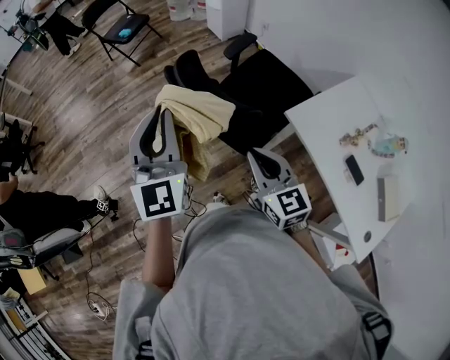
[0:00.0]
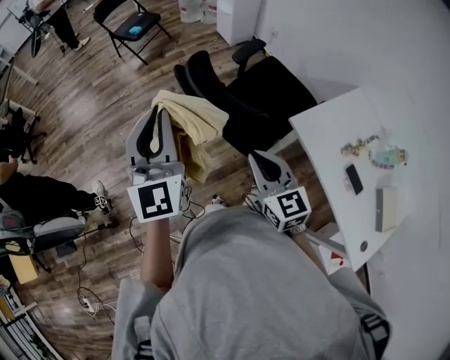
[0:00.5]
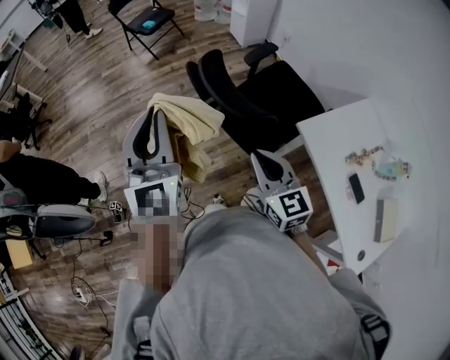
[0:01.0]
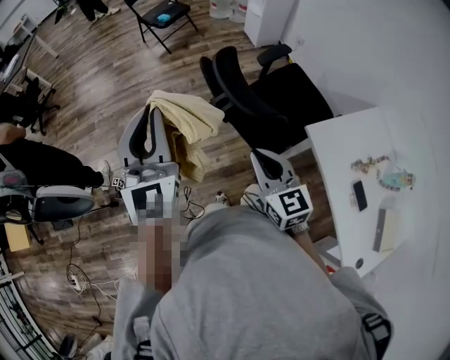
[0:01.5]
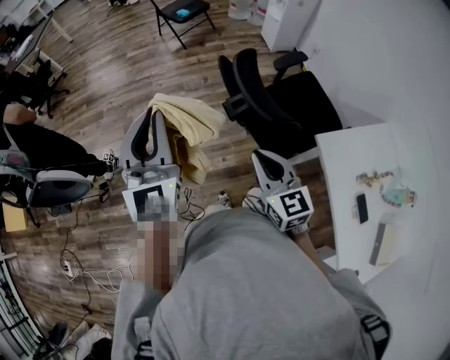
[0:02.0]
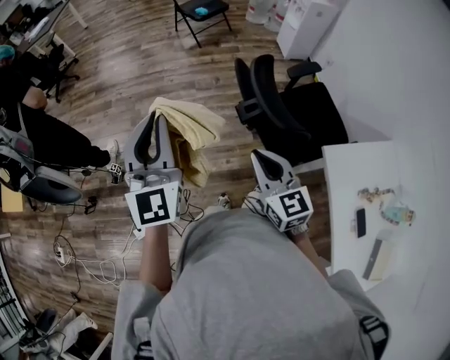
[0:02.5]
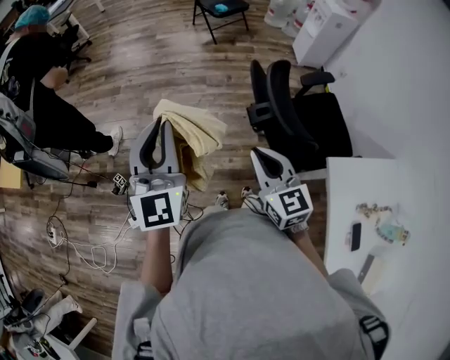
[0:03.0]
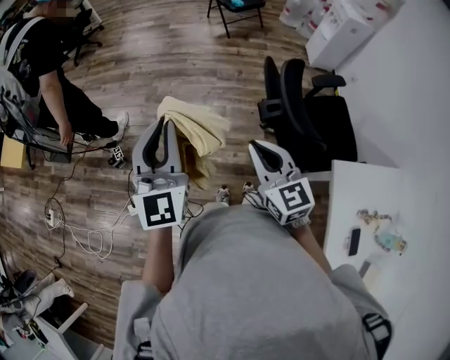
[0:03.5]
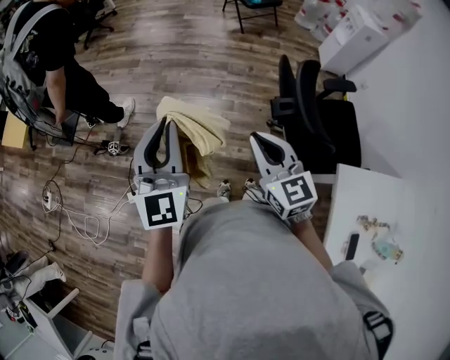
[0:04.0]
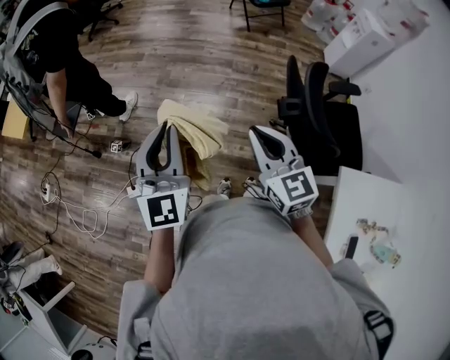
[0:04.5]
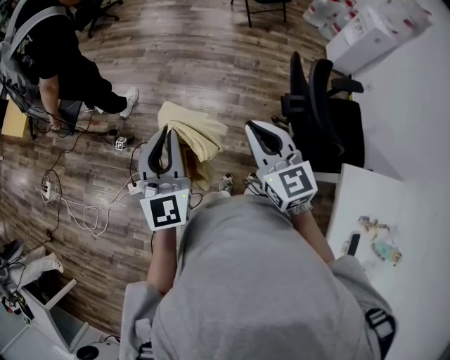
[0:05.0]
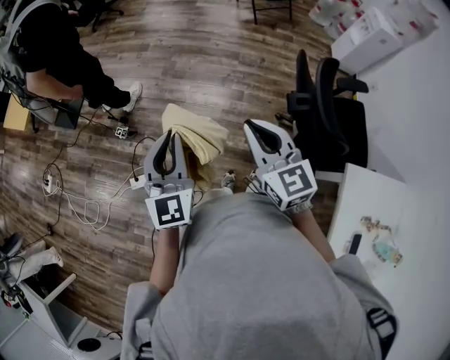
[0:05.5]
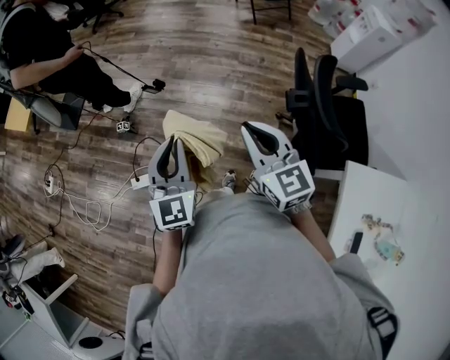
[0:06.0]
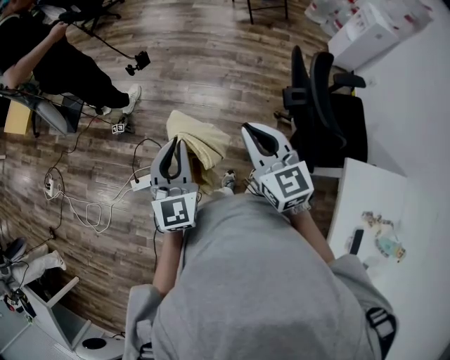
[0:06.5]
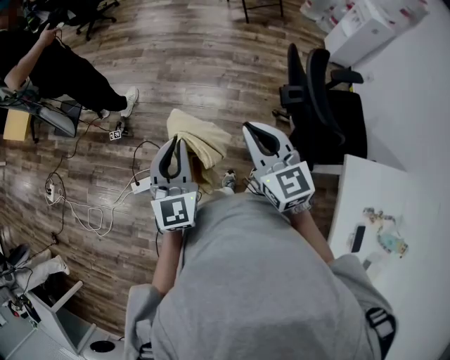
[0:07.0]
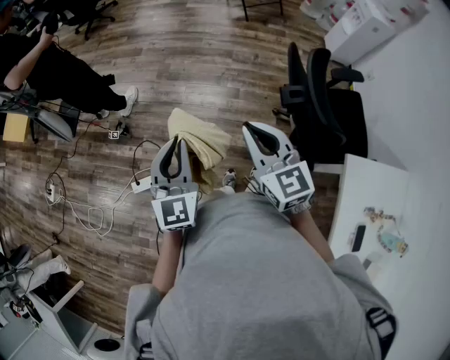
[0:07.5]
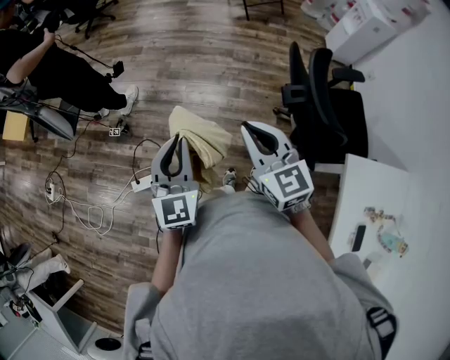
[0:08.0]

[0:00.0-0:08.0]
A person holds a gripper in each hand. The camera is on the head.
0:00.0 to 0:02.0: The right gripper shifts roughly 10 cm to the left, while the left gripper moves to the left, some 15 cm.
0:02.0 to 0:04.0: The right gripper shifts about 10 cm to the left and forward, and turns by roughly 20 degrees. Meanwhile the left gripper travels to the left and downward by about 10 cm.
0:04.0 to 0:06.0: The right gripper moves to the left, roughly 5 cm, while the left gripper travels downward and to the left by some 10 cm.
0:06.0 to 0:08.0: The grippers stay close to where they were, moving slightly.

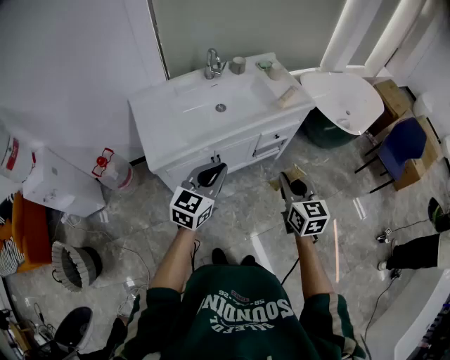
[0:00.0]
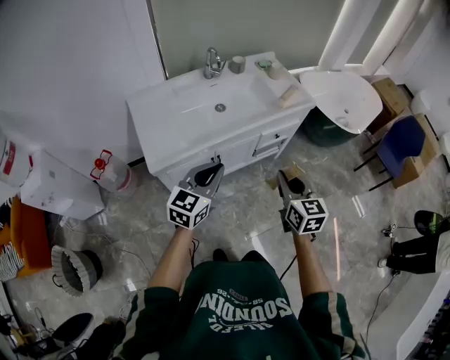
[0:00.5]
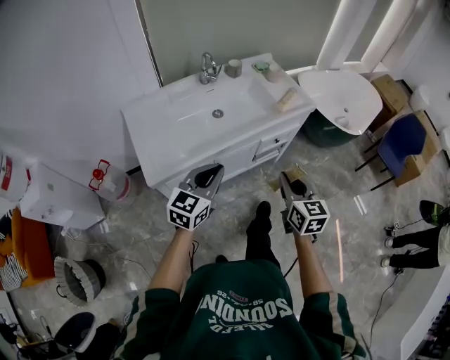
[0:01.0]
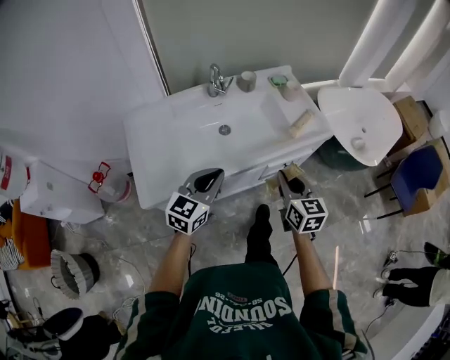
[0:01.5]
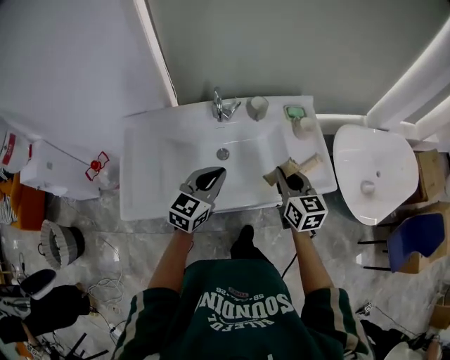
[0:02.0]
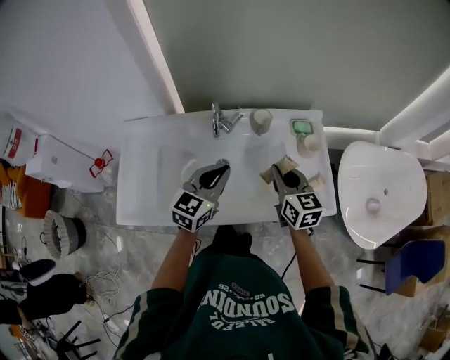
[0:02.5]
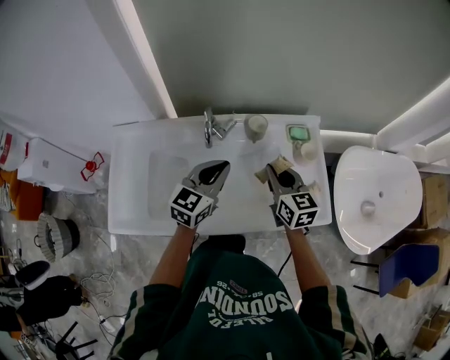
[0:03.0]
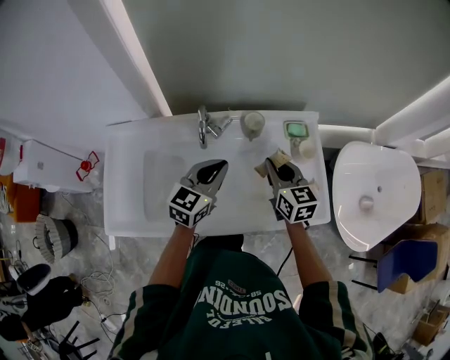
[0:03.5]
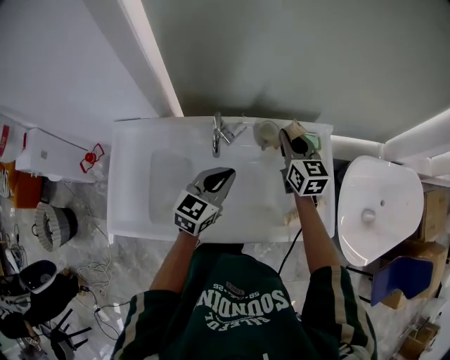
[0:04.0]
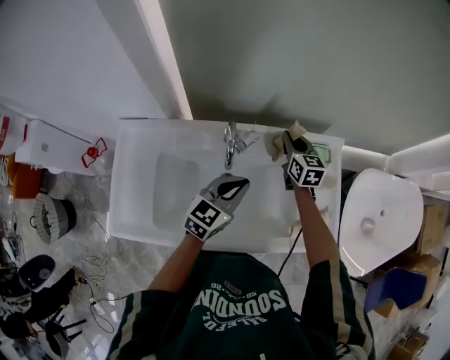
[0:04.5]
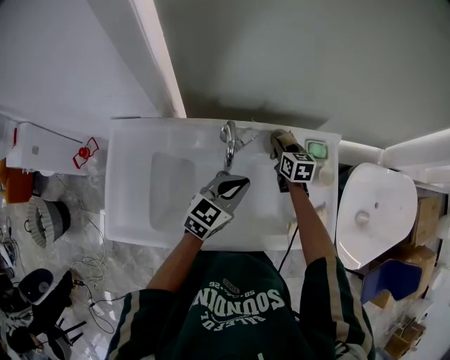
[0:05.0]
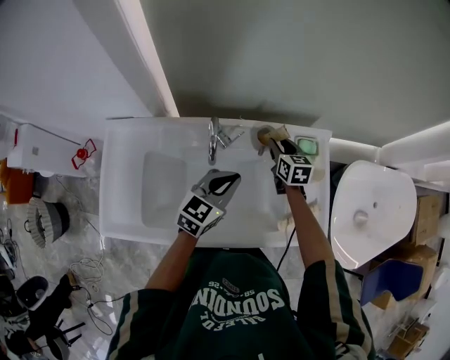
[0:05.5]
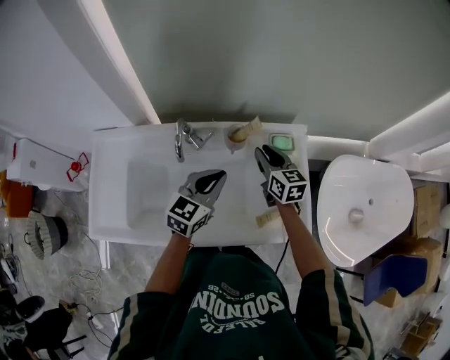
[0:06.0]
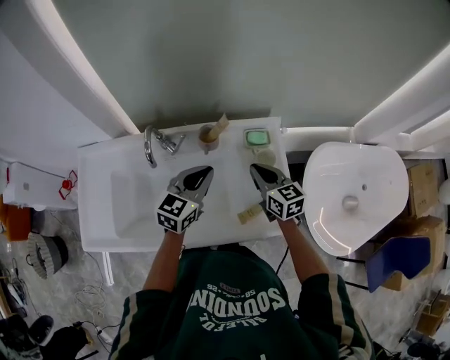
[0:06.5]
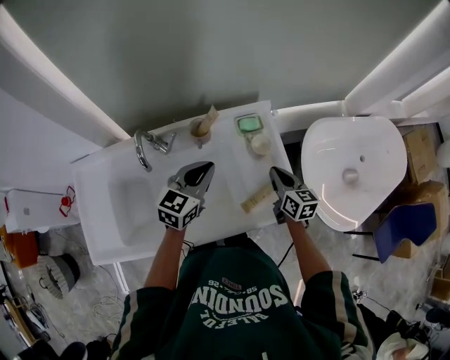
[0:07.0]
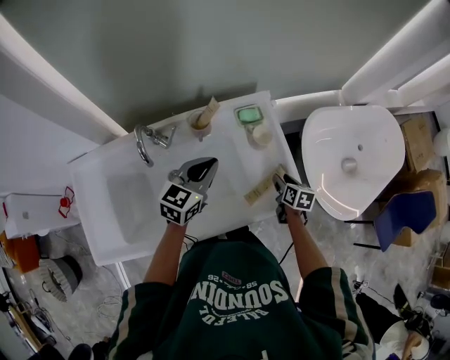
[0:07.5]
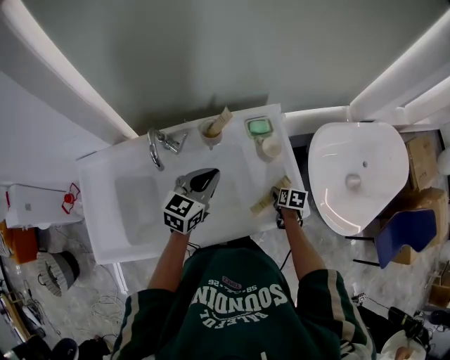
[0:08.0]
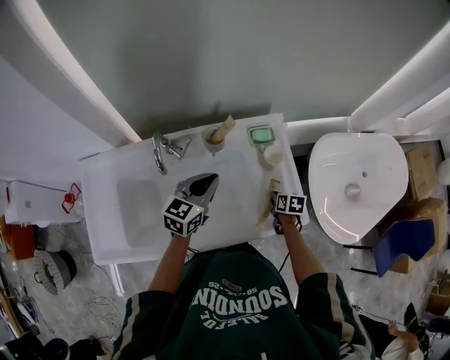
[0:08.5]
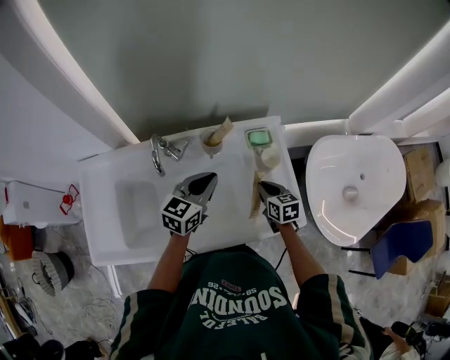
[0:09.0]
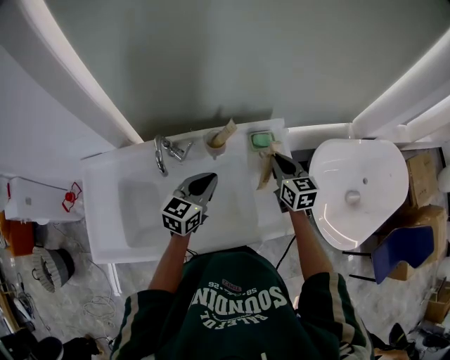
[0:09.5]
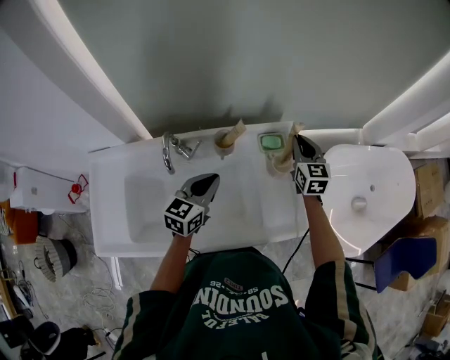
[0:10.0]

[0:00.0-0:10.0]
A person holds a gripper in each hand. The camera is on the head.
0:00.0 to 0:02.0: Both grippers travel together forward, about 40 cm.
0:02.0 to 0:04.0: The right gripper travels forward by approximately 30 cm. The left gripper moves forward, about 15 cm.
0:04.0 to 0:06.0: The left gripper heads to the right, covering approximately 10 cm. Meanwhile the right gripper is displaced downward and to the right by roughly 10 cm.
0:06.0 to 0:08.0: The right gripper moves to the right, downward and backward, approximately 35 cm, points its fingers about 40 degrees further downward, and opens.
0:08.0 to 0:10.0: The right gripper shifts approximately 30 cm upward and forward, tips its fingers upward by approximately 50 degrees, and closes up.

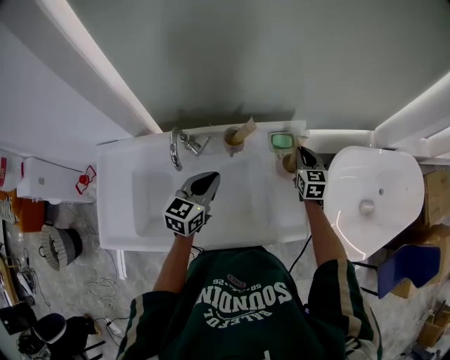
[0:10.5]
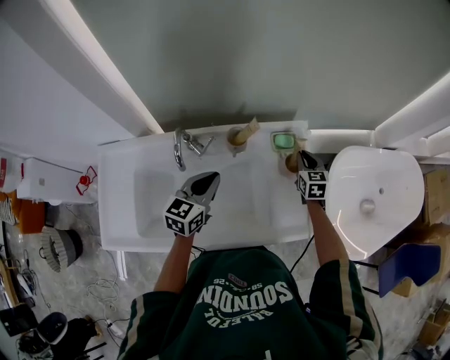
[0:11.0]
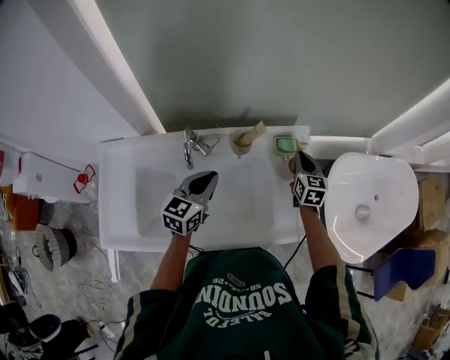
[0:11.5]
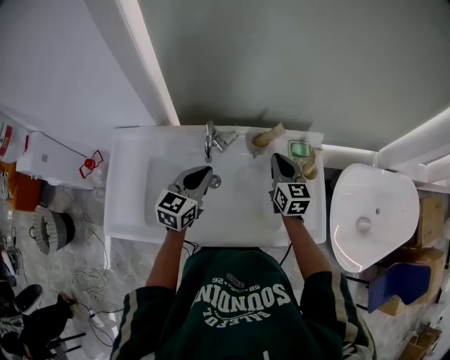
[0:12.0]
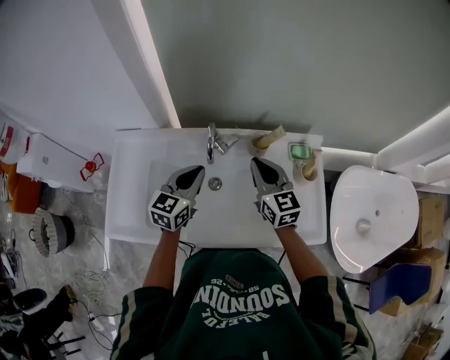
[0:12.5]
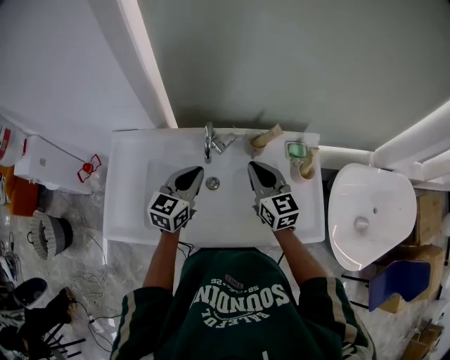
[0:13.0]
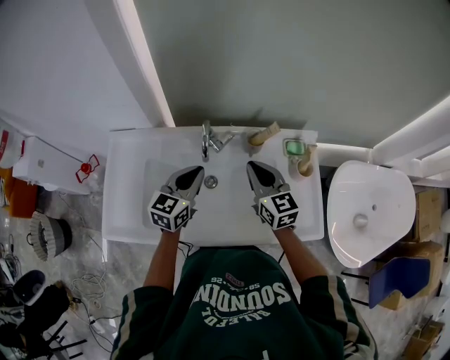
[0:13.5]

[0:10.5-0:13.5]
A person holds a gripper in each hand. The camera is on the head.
0:10.5 to 0:12.0: The right gripper travels to the left and backward by some 20 cm. Meanwhile the left gripper goes approximately 10 cm to the left.
0:12.0 to 0:13.5: The right gripper goes about 10 cm to the left and backward.

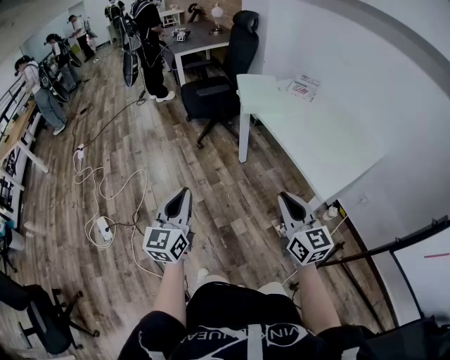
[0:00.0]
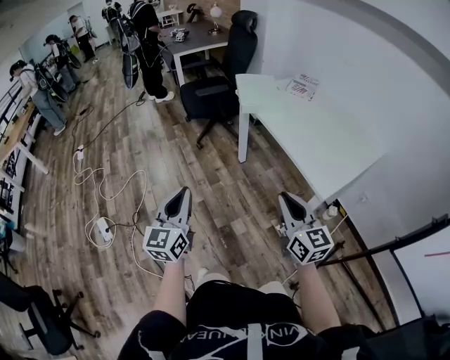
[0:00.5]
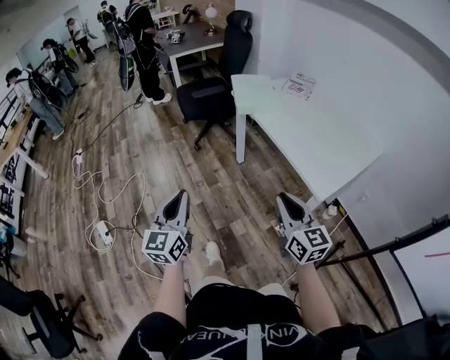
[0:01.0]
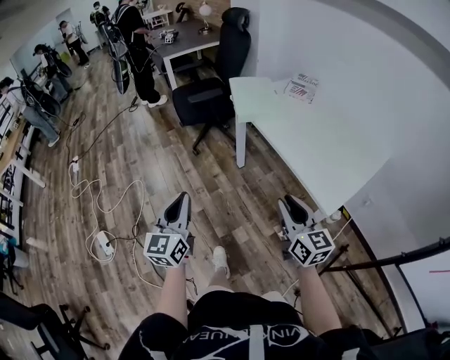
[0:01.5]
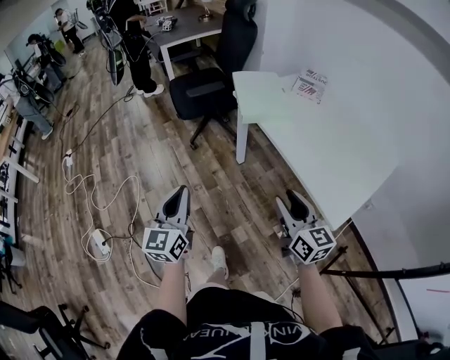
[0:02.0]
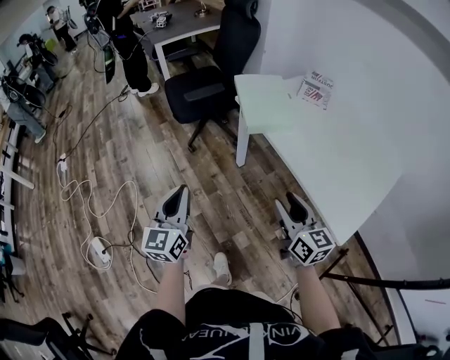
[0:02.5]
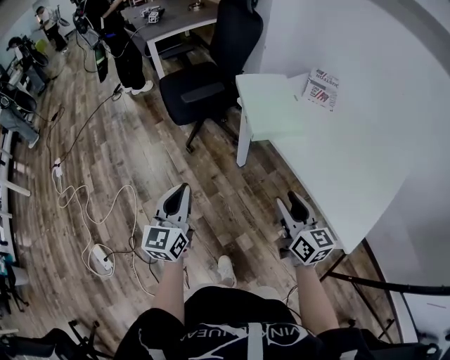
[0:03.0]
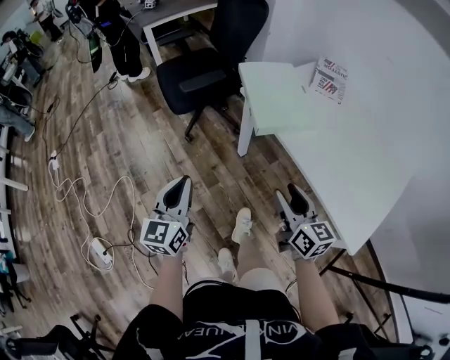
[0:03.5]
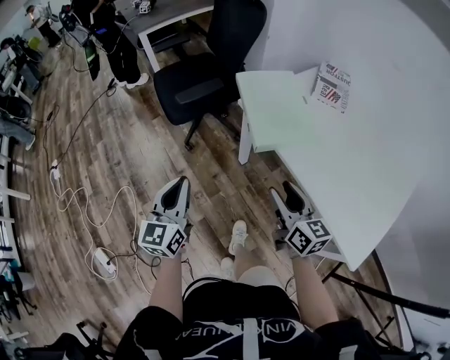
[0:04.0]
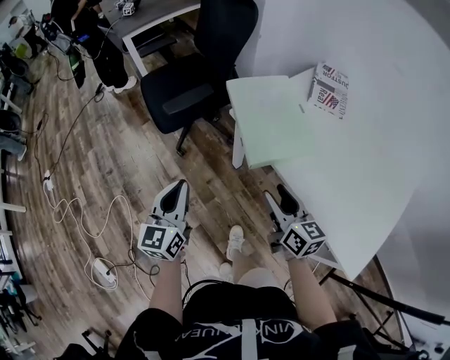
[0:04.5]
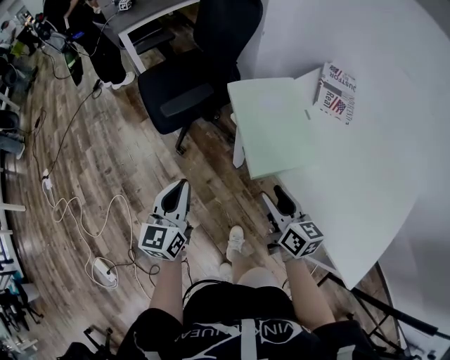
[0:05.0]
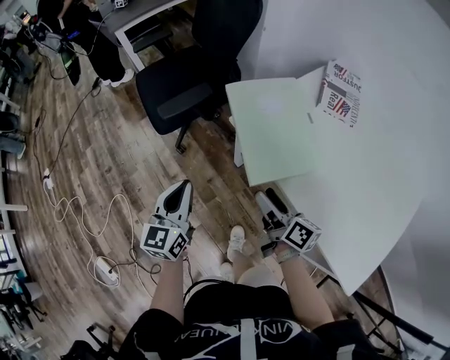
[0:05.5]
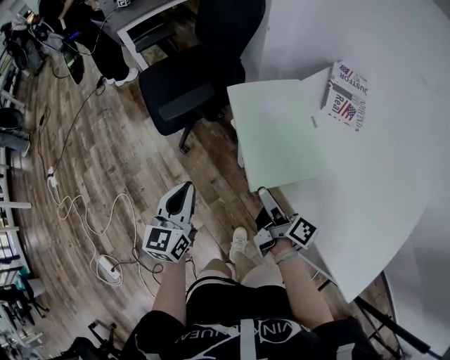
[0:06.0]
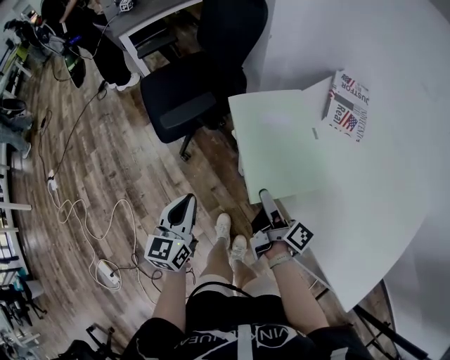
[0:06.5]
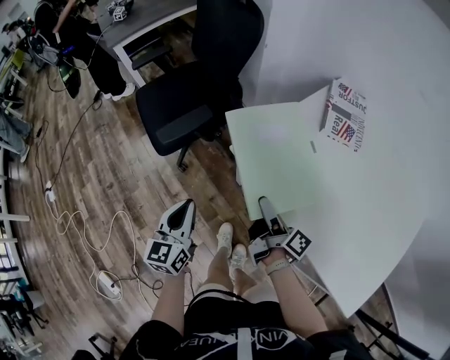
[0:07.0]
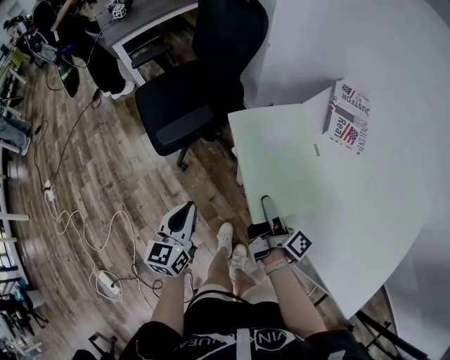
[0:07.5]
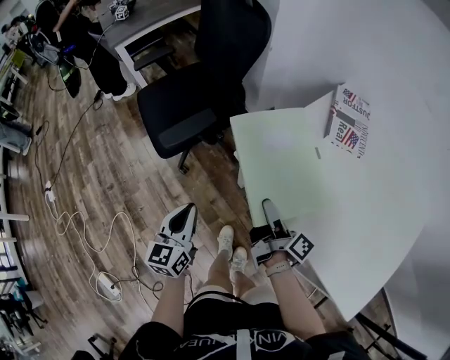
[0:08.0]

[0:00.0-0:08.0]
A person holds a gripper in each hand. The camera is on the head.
0:00.0 to 0:02.0: The two grippers go roughly 20 cm forward. The right gripper opens.
0:02.0 to 0:04.0: Both grippers move forward, approximately 25 cm.
0:04.0 to 0:06.0: Both grippers move forward and downward, some 15 cm. The right gripper rolls clockwise, seen from behind, by some 50 degrees, and opens.
0:06.0 to 0:08.0: The left gripper shifts by approximately 5 cm. The right gripper goes some 5 cm forward.
